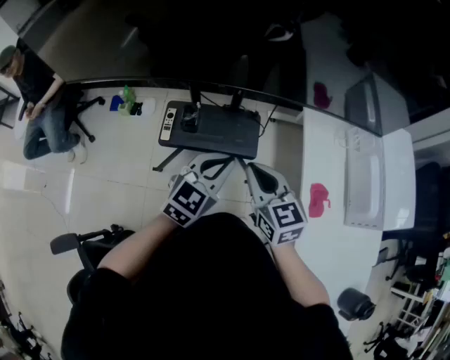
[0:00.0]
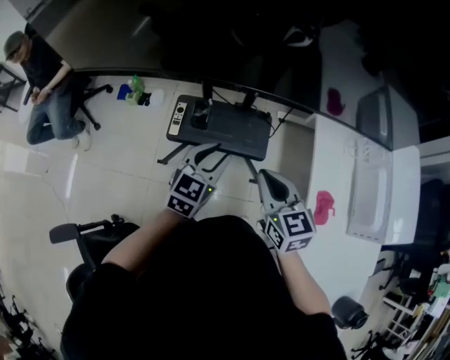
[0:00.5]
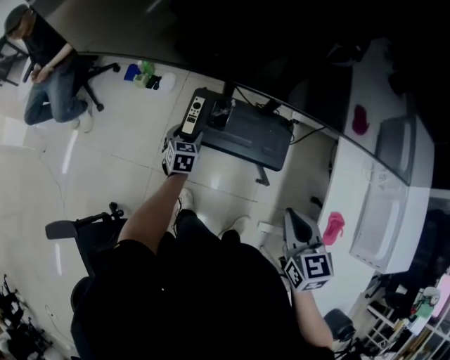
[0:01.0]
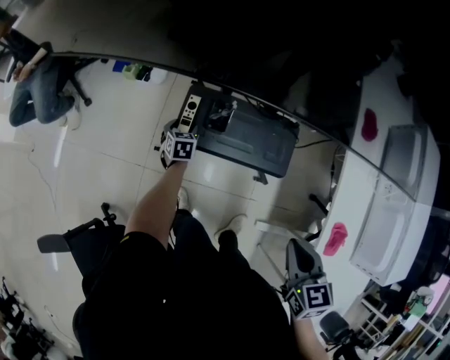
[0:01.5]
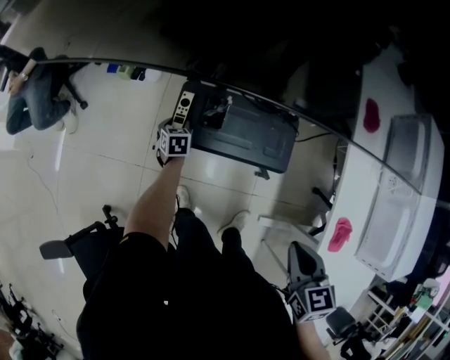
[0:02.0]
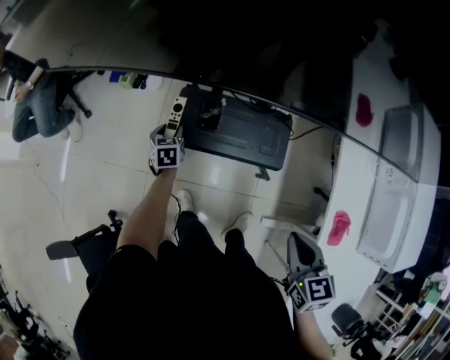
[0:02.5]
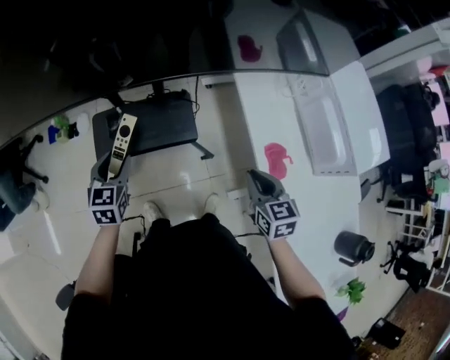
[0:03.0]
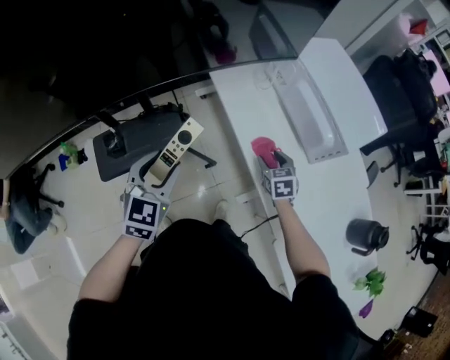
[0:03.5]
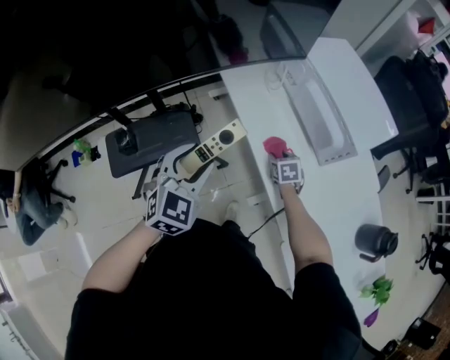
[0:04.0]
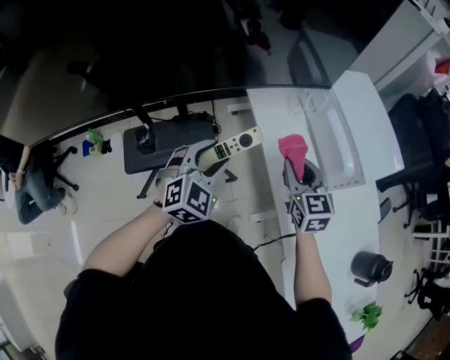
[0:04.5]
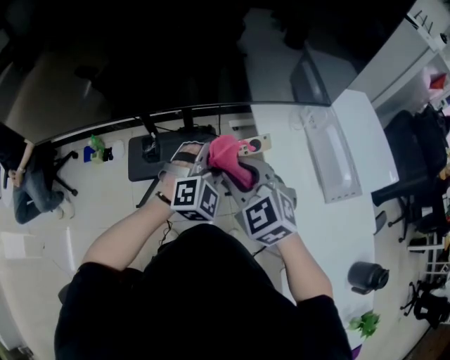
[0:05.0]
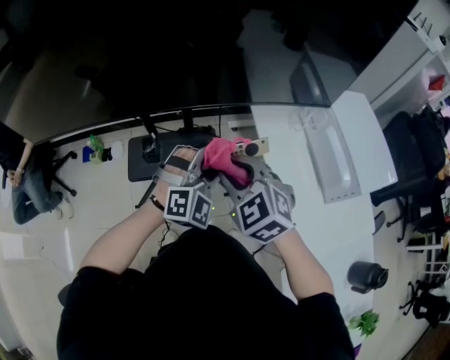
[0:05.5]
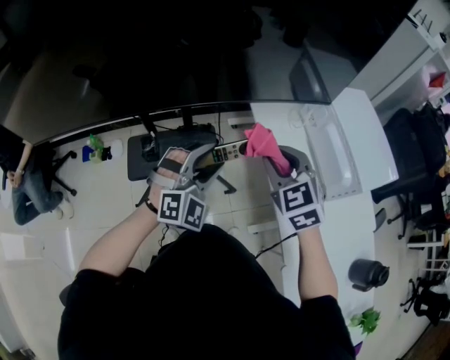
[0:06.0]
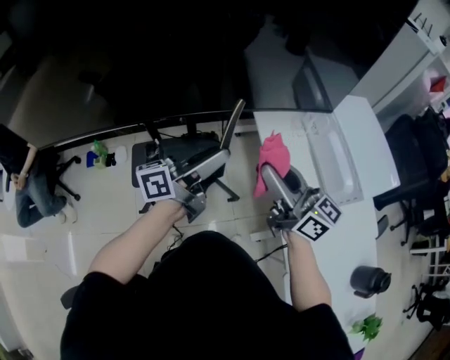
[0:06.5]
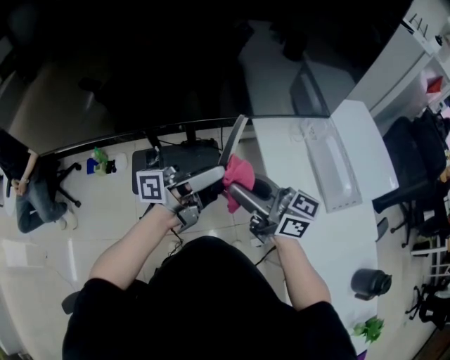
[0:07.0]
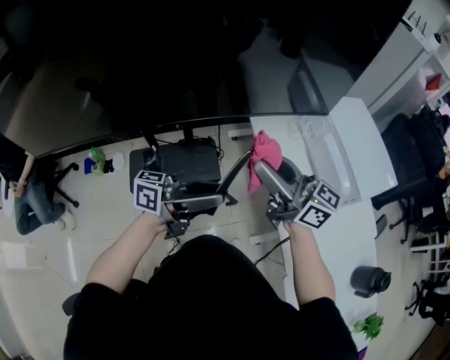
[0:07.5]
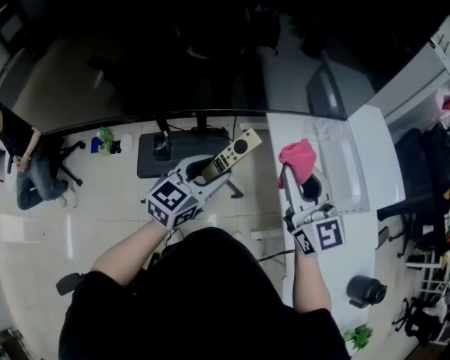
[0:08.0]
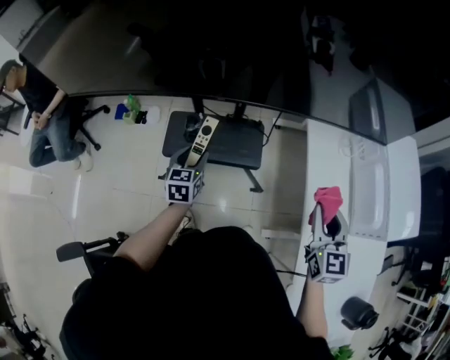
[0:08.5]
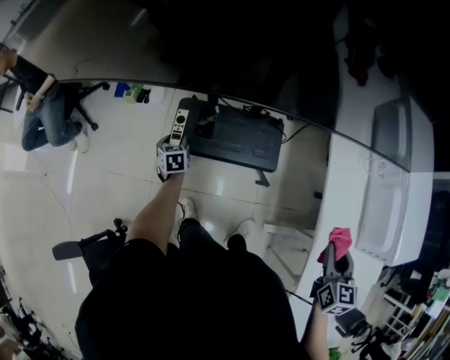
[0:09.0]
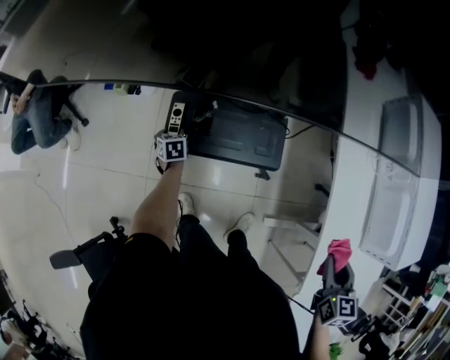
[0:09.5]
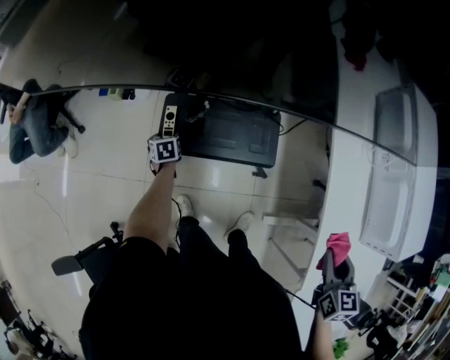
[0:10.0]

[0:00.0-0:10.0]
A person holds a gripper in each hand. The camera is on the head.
0:00.0 to 0:02.0: The right gripper heads downward, covering approximately 10 cm, and swivels about 30 degrees; the left gripper shifts roughly 50 cm downward, to the left and forward, tips its fingers downward by some 40 degrees, and opens up.
0:02.0 to 0:04.0: The left gripper ends up roughly 60 cm from where it was, and turns by approximately 80 degrees, while the right gripper changes place by about 35 cm, changes its angle by approximately 30 degrees, and opens.
0:04.0 to 0:06.0: The left gripper travels to the left by roughly 5 cm, and turns by some 30 degrees, while the right gripper shifts some 40 cm upward and to the left, and rotates about 50 degrees.
0:06.0 to 0:08.0: The right gripper heads upward, covering approximately 5 cm, and points its fingers approximately 30 degrees further upward. The left gripper moves approximately 10 cm upward and comes back, and twists some 60 degrees counterclockwise, seen from behind.
0:08.0 to 0:10.0: The right gripper is displaced downward by roughly 20 cm, and tips its fingers downward by about 40 degrees. Meanwhile the left gripper moves downward and to the left, roughly 60 cm, and points its fingers approximately 50 degrees further downward.

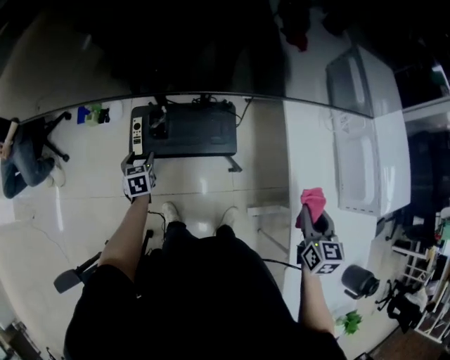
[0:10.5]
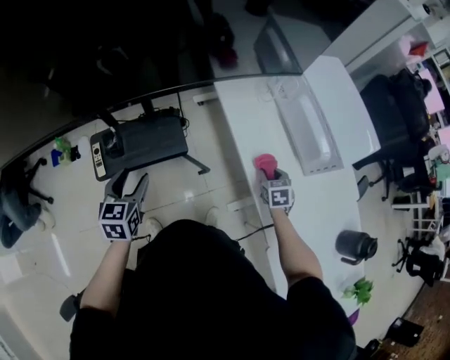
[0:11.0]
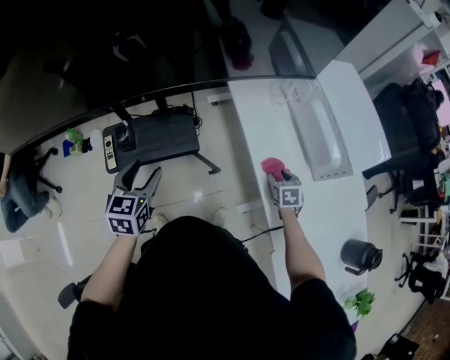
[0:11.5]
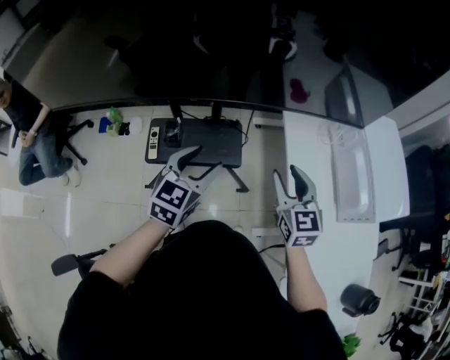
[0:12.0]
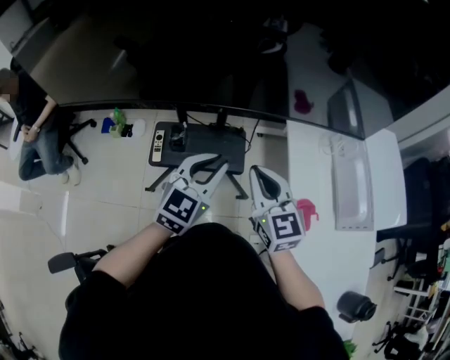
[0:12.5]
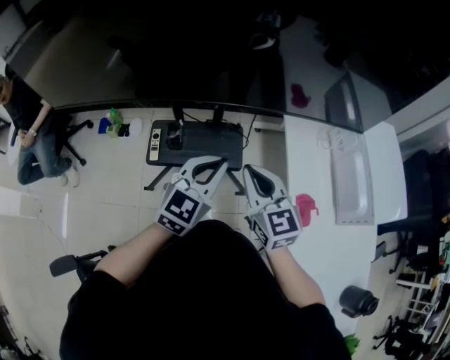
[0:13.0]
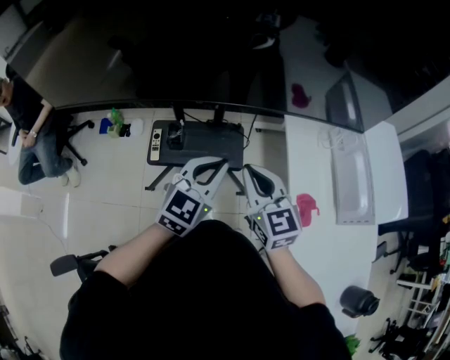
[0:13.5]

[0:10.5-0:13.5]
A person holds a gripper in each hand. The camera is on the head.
0:10.5 to 0:12.0: The left gripper is displaced upward and to the right by some 40 cm, and turns by about 40 degrees. The right gripper goes approximately 10 cm to the left and forward, moves about 20 cm downward and comes back, changes its angle by roughly 20 degrees, and opens its fingers.
0:12.0 to 0:13.5: The right gripper goes about 10 cm to the left, and closes up. Meanwhile the left gripper closes.

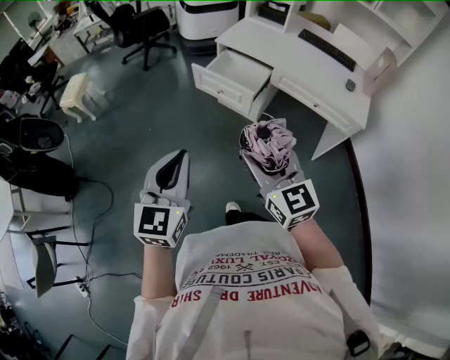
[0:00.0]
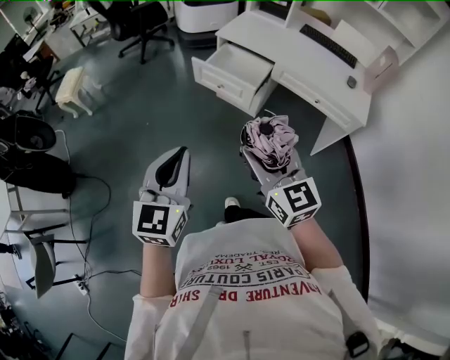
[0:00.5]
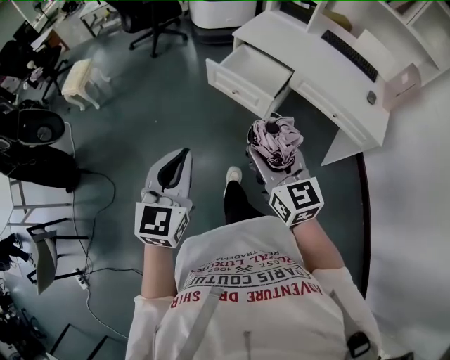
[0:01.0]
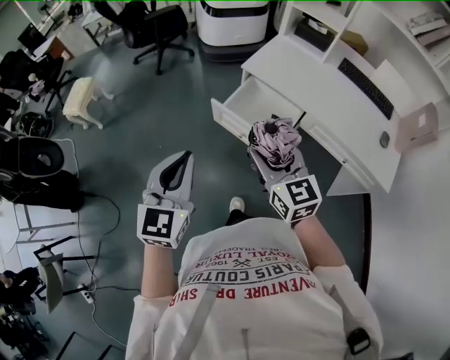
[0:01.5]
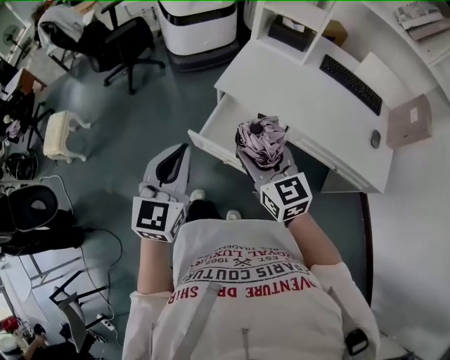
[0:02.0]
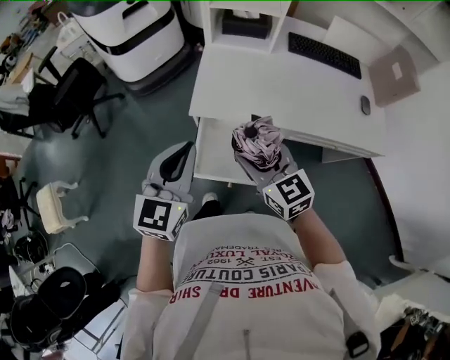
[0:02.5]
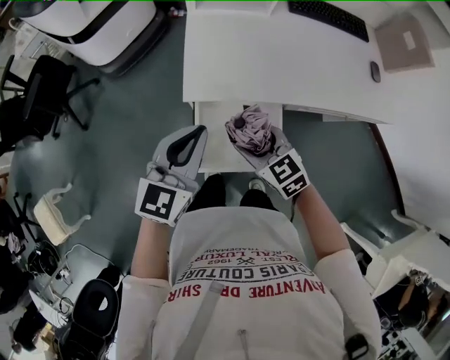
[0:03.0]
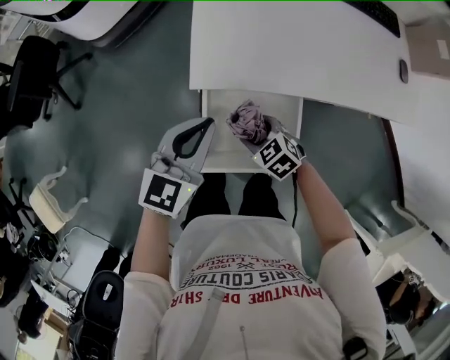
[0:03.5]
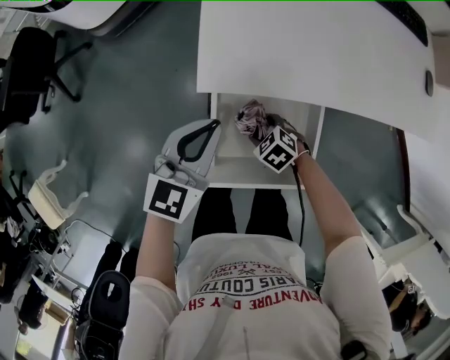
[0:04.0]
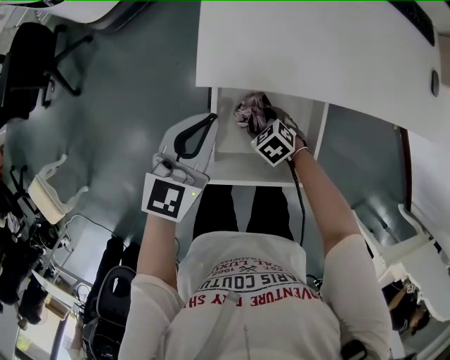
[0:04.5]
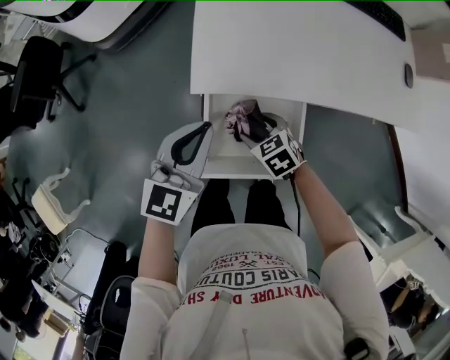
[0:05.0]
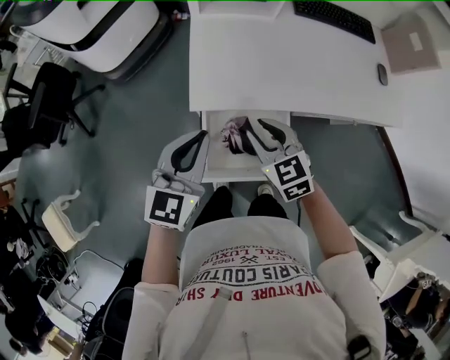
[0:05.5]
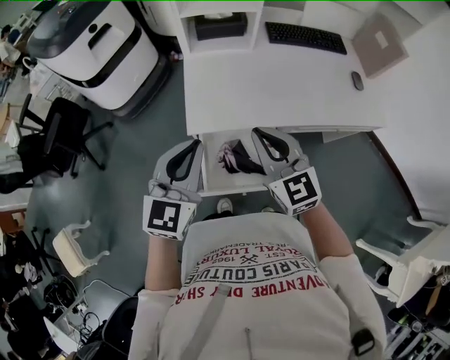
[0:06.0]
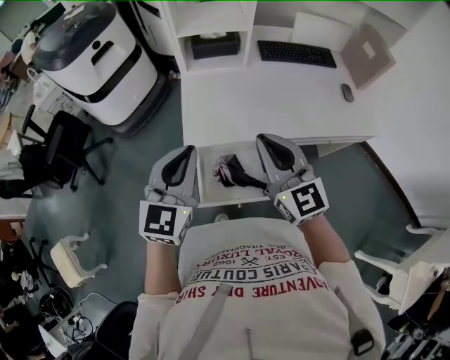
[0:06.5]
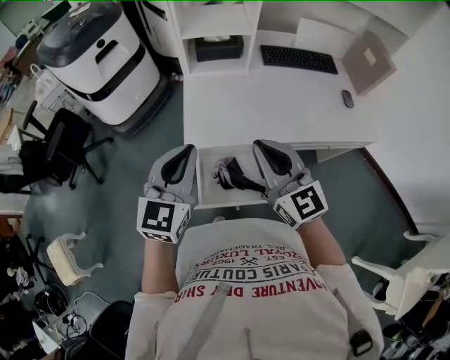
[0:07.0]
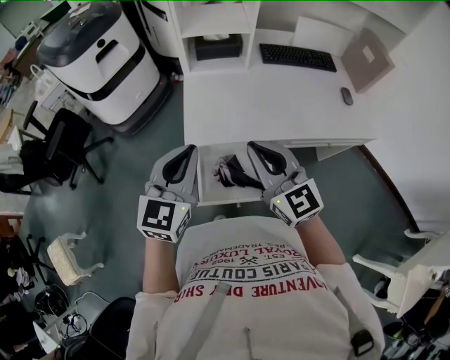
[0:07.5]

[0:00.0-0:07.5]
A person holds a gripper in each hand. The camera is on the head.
0:00.0 to 0:02.0: The pair of grippers is taken forward, about 50 cm.
0:02.0 to 0:04.0: The right gripper goes approximately 50 cm downward, and tilts its fingers some 60 degrees downward, while the left gripper shifts by approximately 40 cm, and swivels some 40 degrees.
0:04.0 to 0:05.5: The left gripper goes approximately 15 cm upward. The right gripper is displaced upward by some 30 cm, and tilts its fingers roughly 30 degrees upward.
0:05.5 to 0:07.5: The right gripper is displaced upward by some 20 cm, tilts its fingers some 30 degrees upward, and closes its fingers, while the left gripper moves upward, roughly 10 cm.

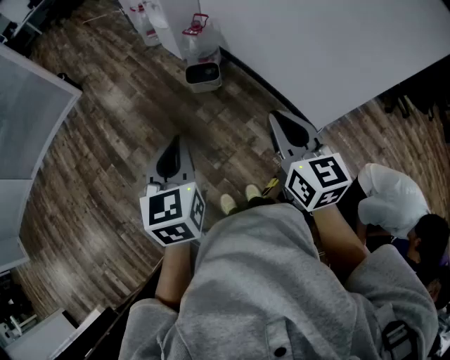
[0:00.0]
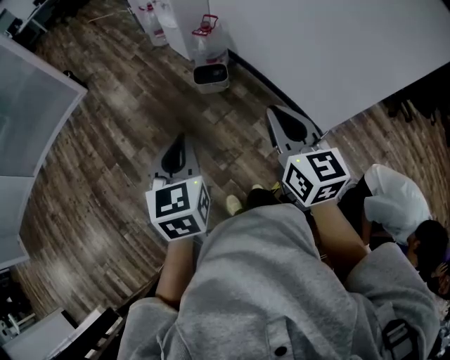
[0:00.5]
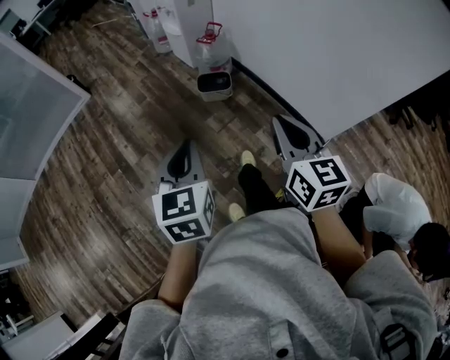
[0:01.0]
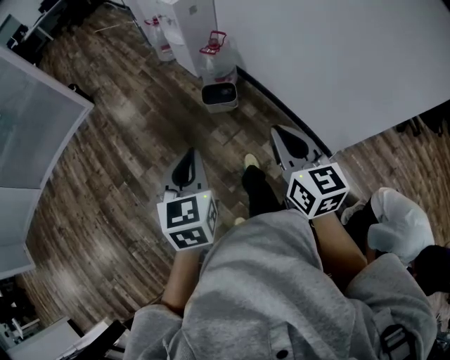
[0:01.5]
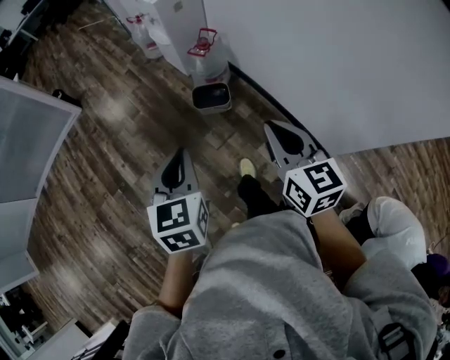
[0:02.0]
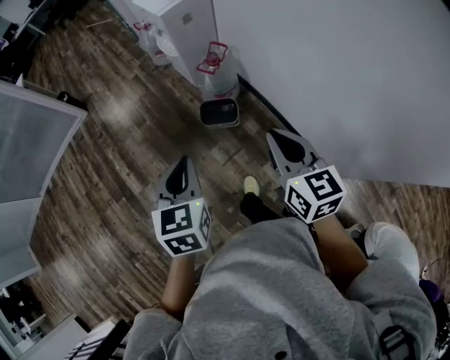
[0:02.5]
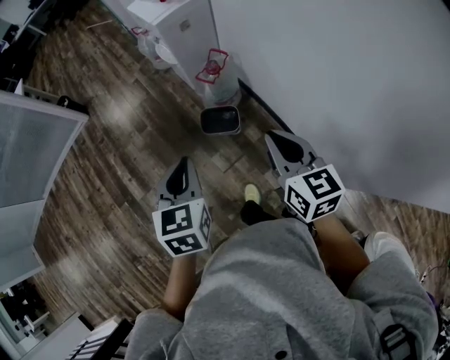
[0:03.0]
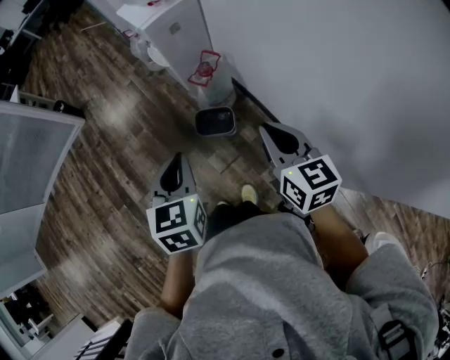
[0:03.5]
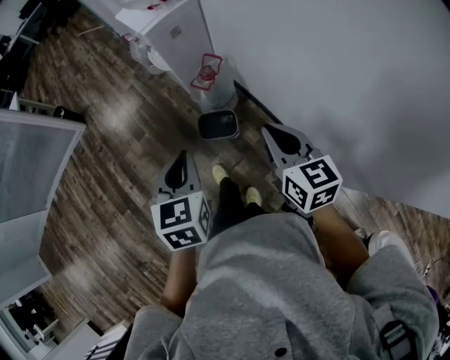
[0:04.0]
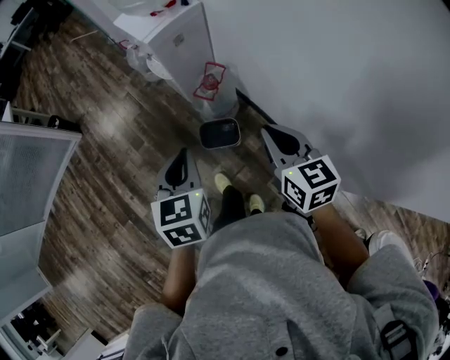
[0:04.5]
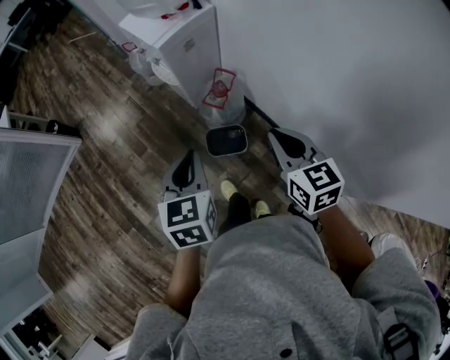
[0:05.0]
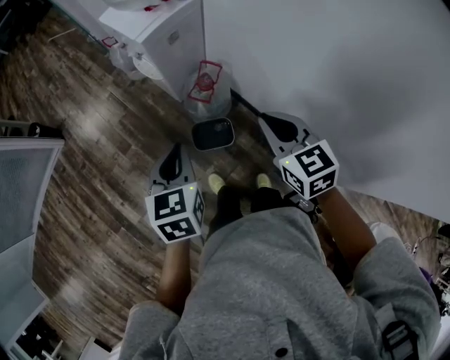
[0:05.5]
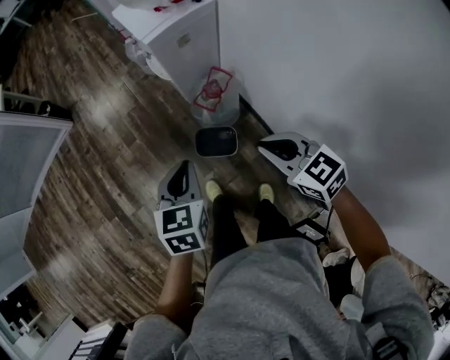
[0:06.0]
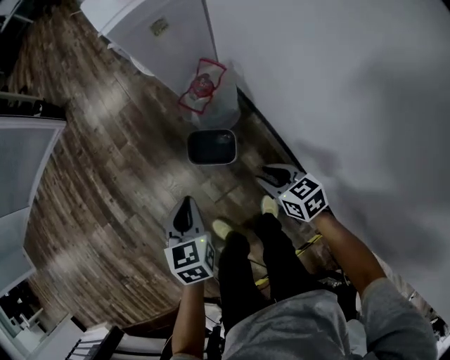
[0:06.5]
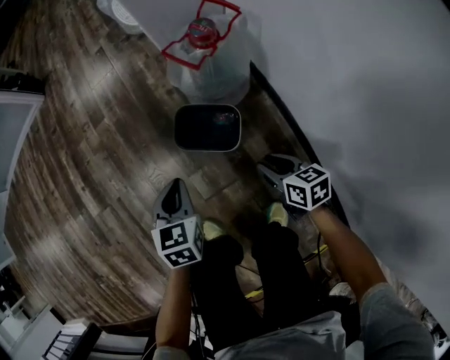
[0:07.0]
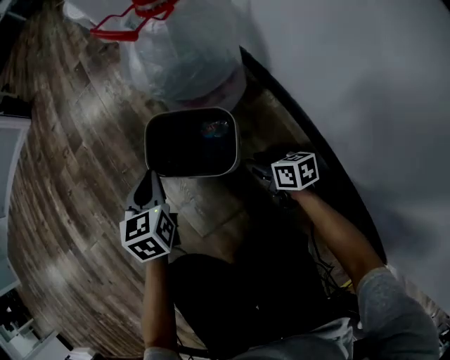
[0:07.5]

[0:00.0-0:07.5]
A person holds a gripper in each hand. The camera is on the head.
0:00.0 to 0:02.0: Both grippers travel together forward, some 25 cm.
0:02.0 to 0:04.0: The right gripper shifts some 25 cm forward; the left gripper shifts about 25 cm forward and to the right.
0:04.0 to 0:05.5: The two grippers go about 15 cm forward.
0:05.5 to 0:07.5: The grippers both shift downward by about 80 cm. The right gripper changes its angle by some 50 degrees, and opens up.
